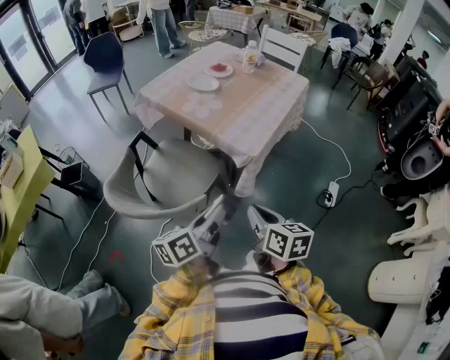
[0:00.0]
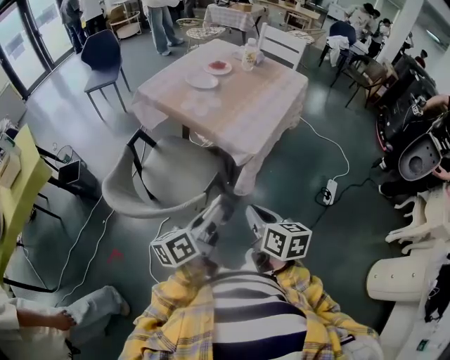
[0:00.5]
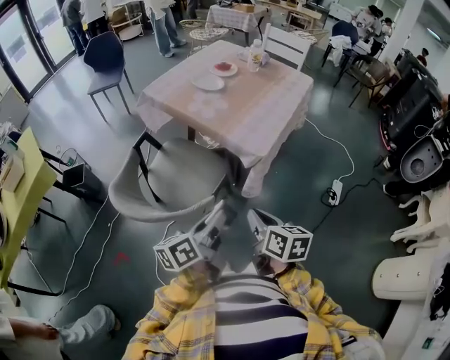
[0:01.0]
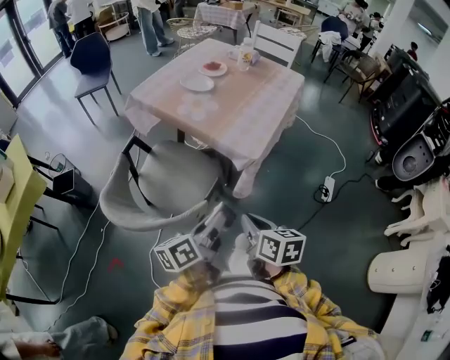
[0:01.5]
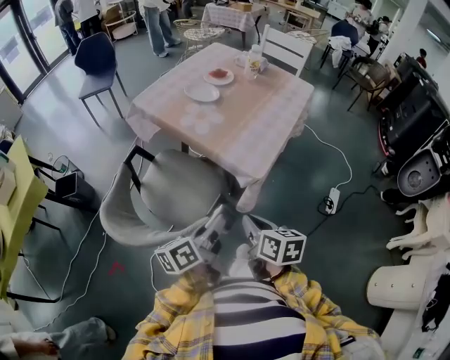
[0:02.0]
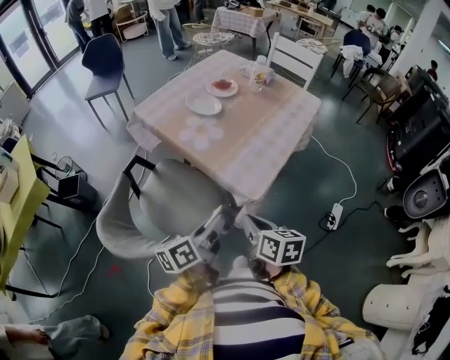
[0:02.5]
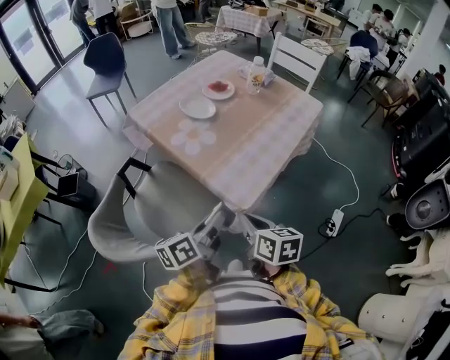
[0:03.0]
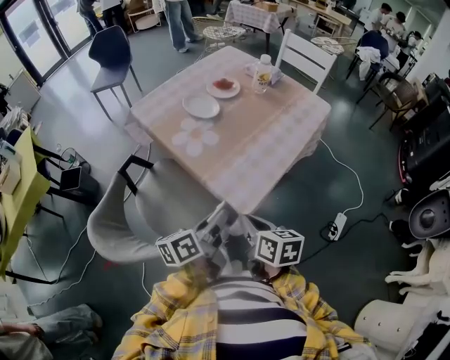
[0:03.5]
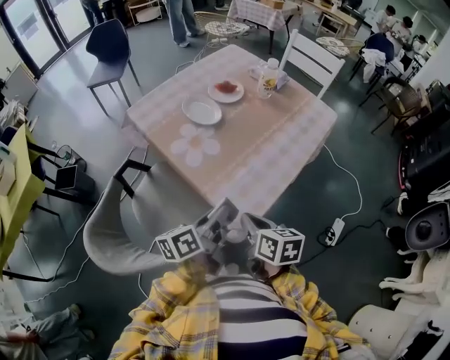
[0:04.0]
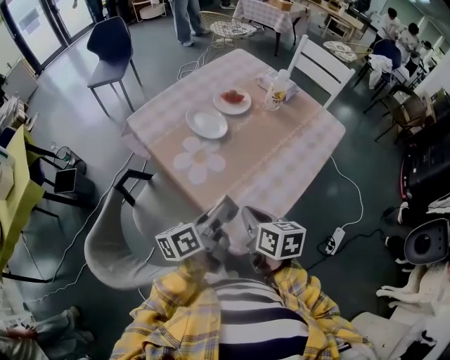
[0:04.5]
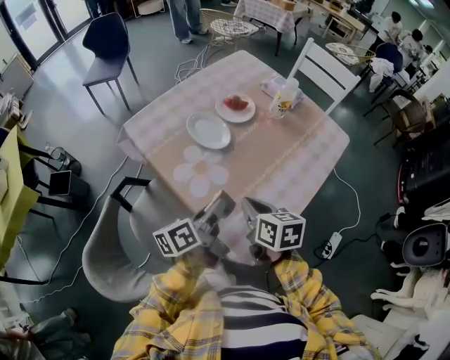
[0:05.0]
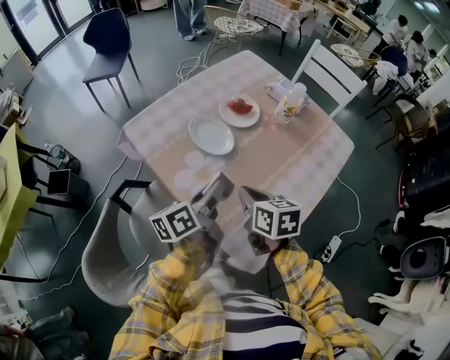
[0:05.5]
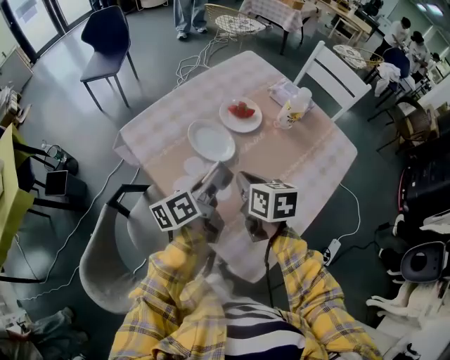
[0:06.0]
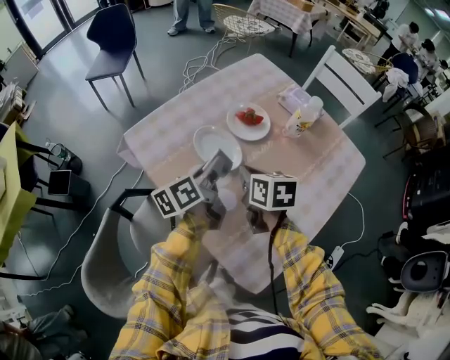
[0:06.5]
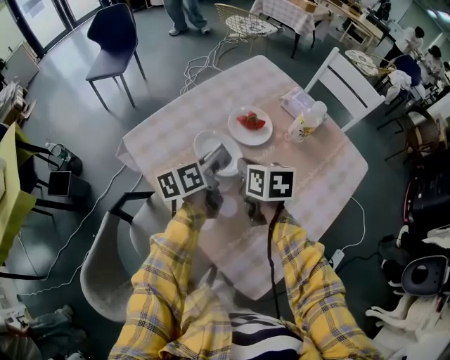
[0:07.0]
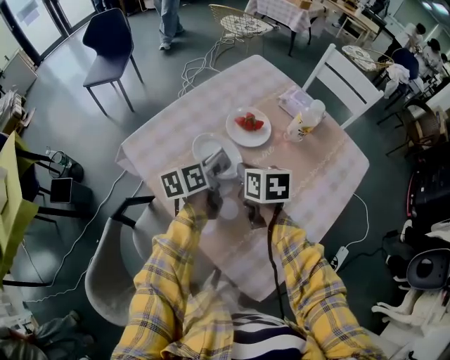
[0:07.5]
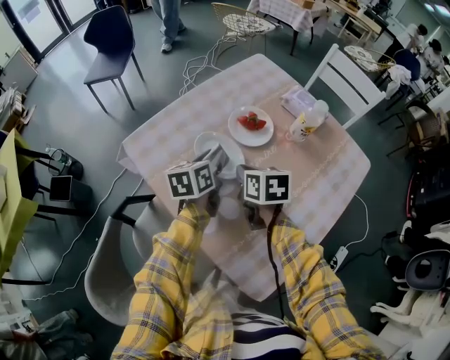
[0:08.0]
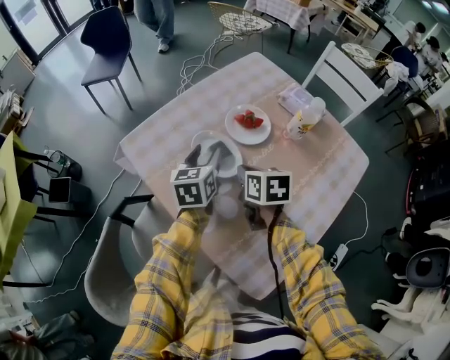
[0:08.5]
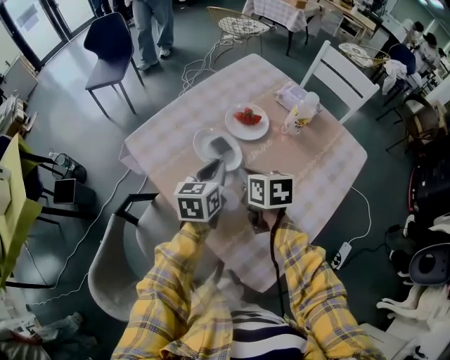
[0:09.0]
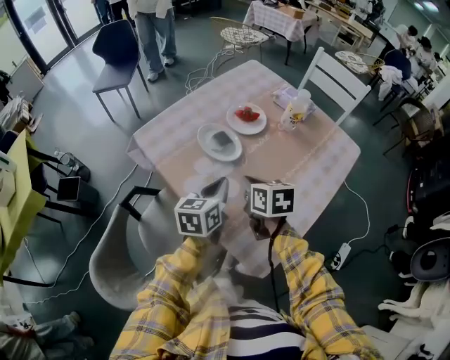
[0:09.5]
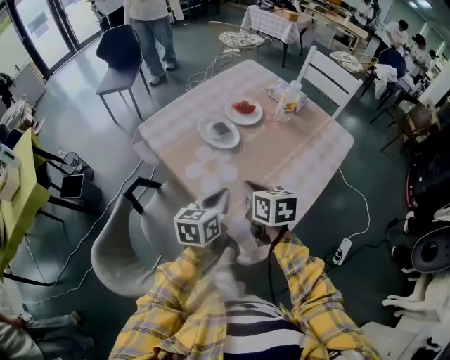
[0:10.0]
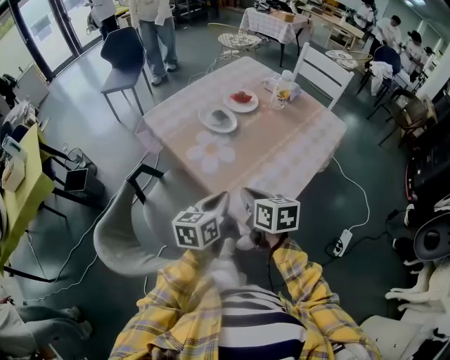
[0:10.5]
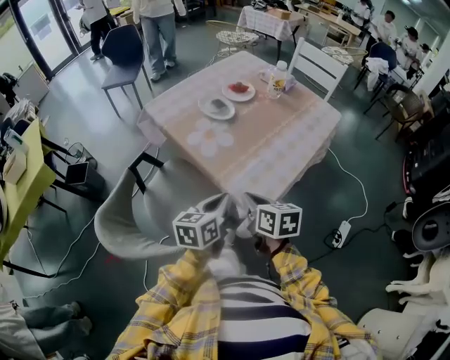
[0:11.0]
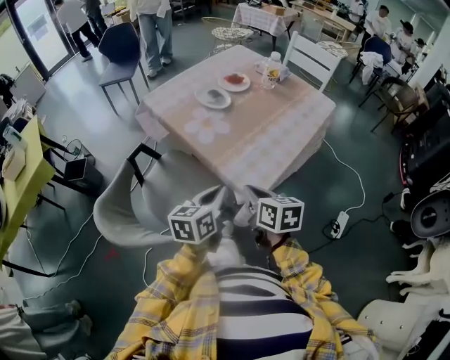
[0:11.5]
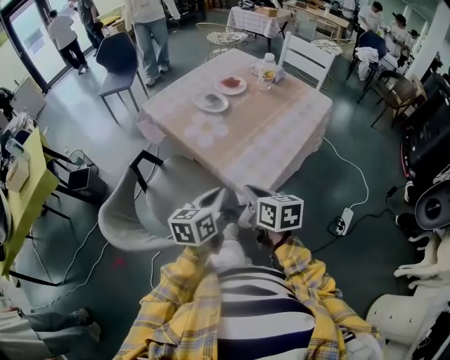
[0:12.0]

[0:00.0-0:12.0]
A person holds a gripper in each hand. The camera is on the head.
0:00.0 to 0:02.0: The grippers both shift forward by some 10 cm.
0:02.0 to 0:04.0: The grippers both shift forward by about 20 cm.
0:04.0 to 0:06.0: The two grippers go about 25 cm forward.
0:06.0 to 0:08.0: Both grippers travel together forward, approximately 10 cm. The left gripper swivels about 30 degrees.
0:08.0 to 0:10.0: The grippers both shift backward by some 20 cm. The left gripper closes its fingers.
0:10.0 to 0:12.0: Both grippers move backward, about 20 cm.

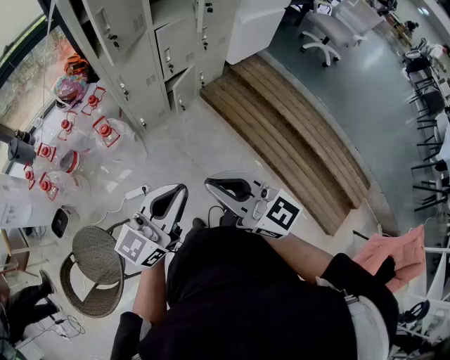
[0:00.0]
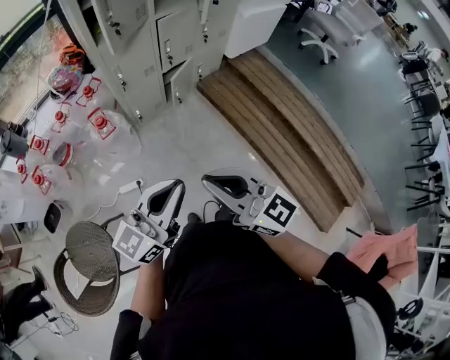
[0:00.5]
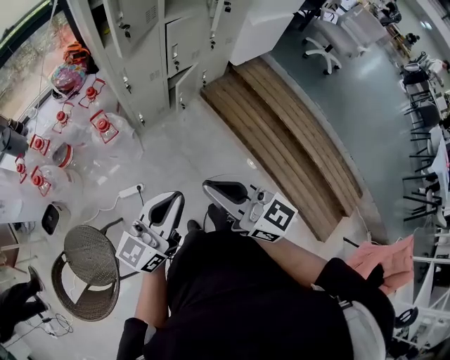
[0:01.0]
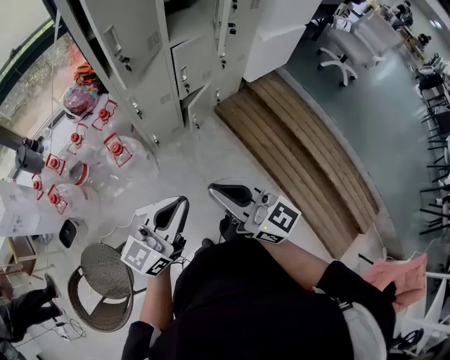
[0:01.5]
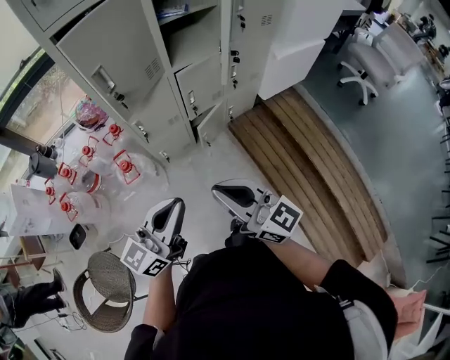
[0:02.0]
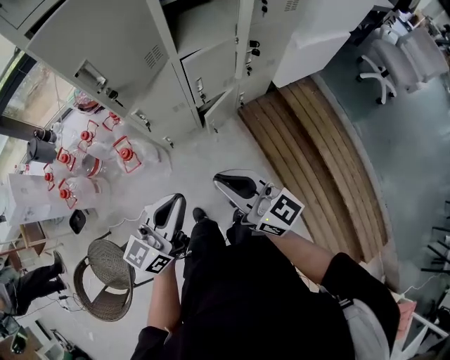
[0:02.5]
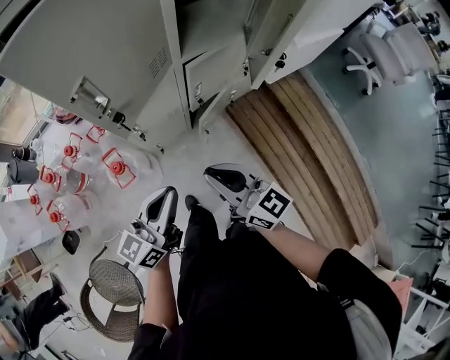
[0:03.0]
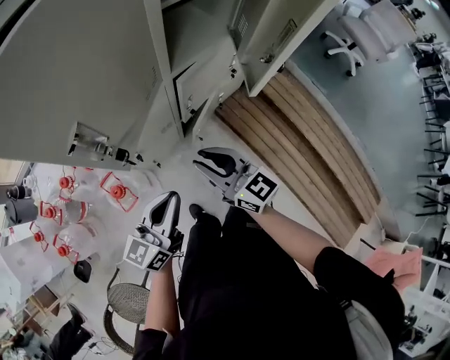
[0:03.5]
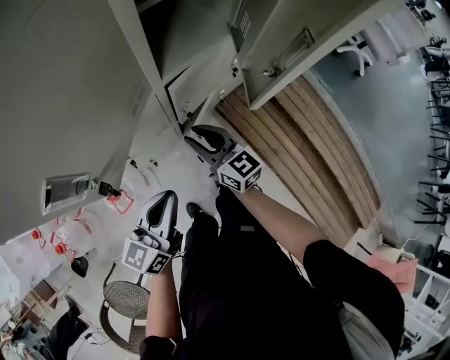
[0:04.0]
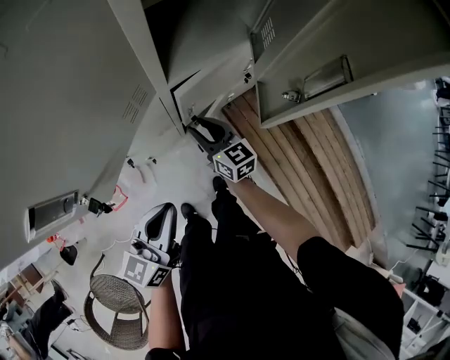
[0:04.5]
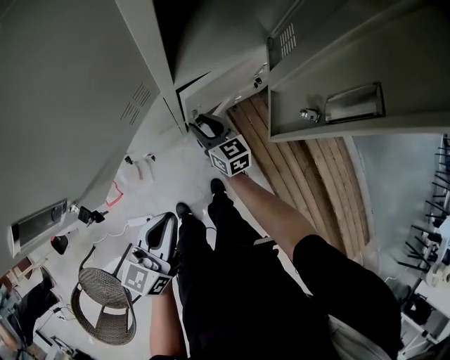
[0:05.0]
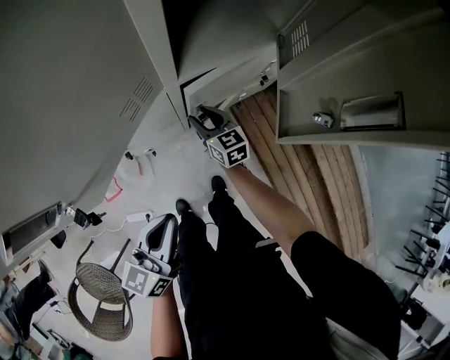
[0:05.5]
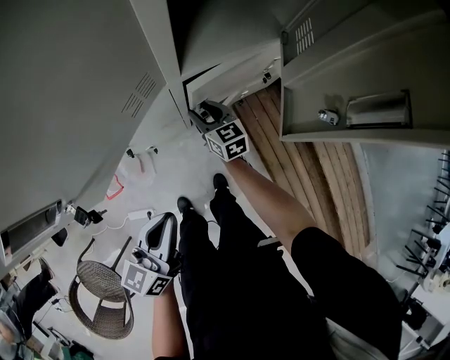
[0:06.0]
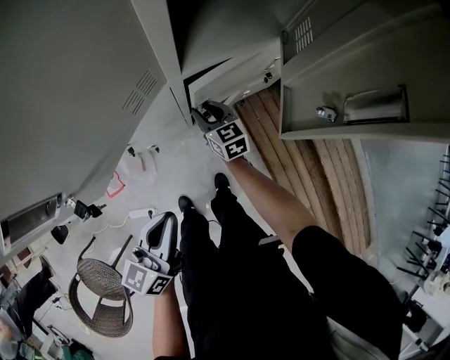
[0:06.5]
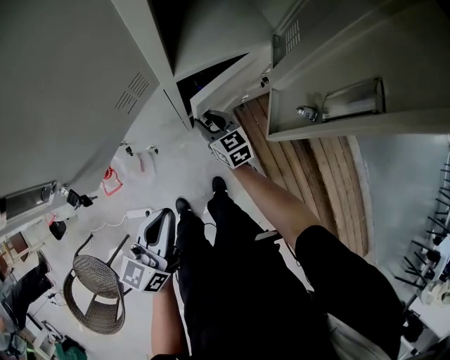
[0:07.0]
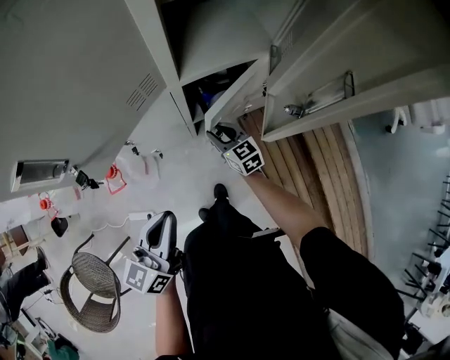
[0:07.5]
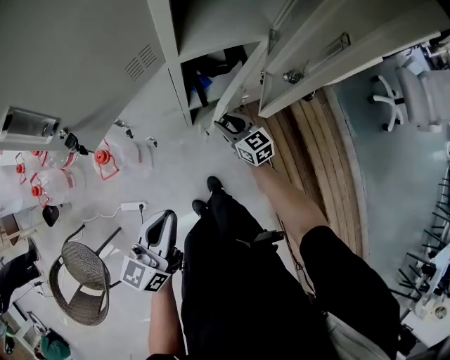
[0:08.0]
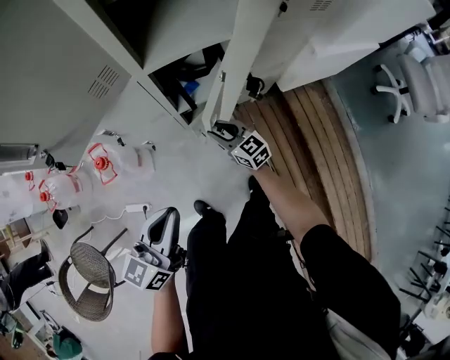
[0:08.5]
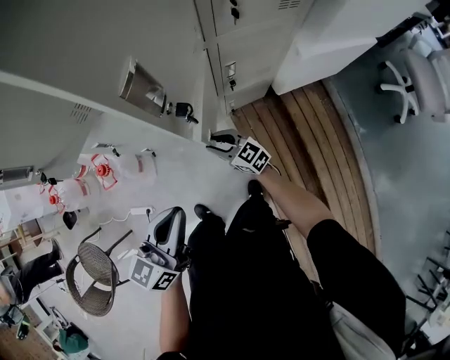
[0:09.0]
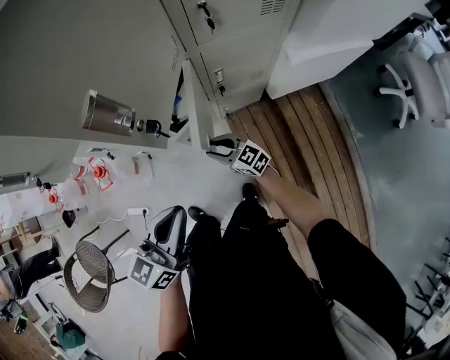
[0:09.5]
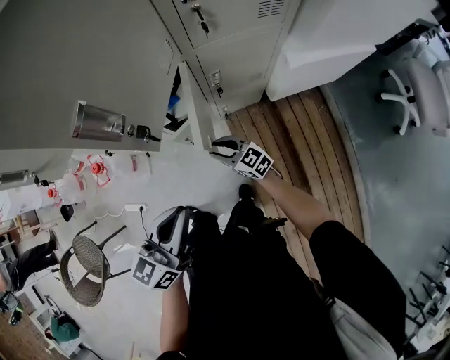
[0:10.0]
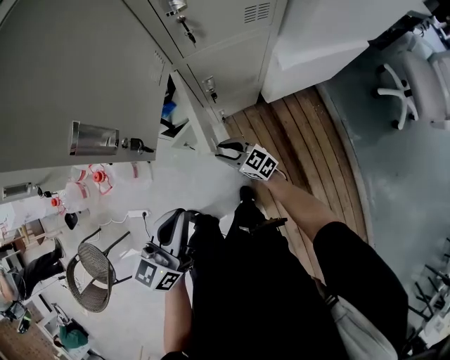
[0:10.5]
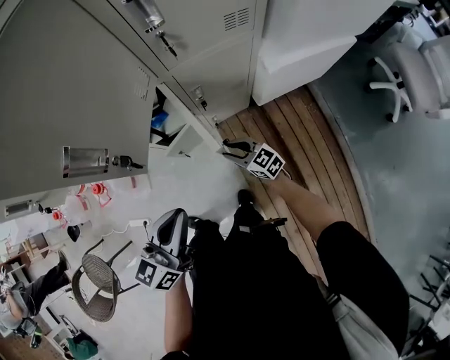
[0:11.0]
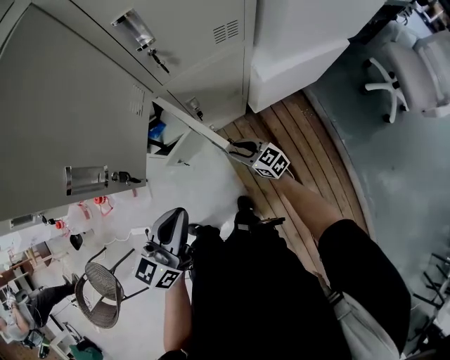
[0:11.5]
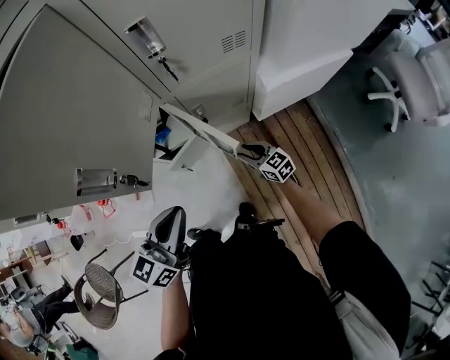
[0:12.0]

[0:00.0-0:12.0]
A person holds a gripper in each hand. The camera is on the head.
0:00.0 to 0:02.0: The grippers both shift forward by some 25 cm.
0:02.0 to 0:04.0: The two grippers go about 40 cm forward and downward. The right gripper changes its angle by roughly 30 degrees, and opens up.
0:04.0 to 0:06.0: The left gripper heads downward, covering some 5 cm, while the right gripper shifts roughly 20 cm downward and forward.
0:06.0 to 0:08.0: The left gripper is displaced backward by approximately 10 cm, while the right gripper travels backward and to the right by some 10 cm.
0:08.0 to 0:10.0: The left gripper travels to the right by approximately 30 cm; the right gripper heads to the right and backward, covering some 20 cm, and changes its angle by roughly 20 degrees.
0:10.0 to 0:12.0: The left gripper heads forward and to the right, covering about 10 cm. The right gripper goes approximately 20 cm to the right.

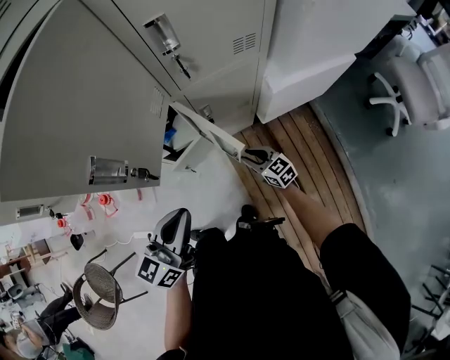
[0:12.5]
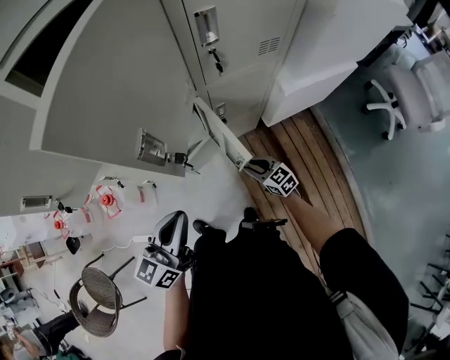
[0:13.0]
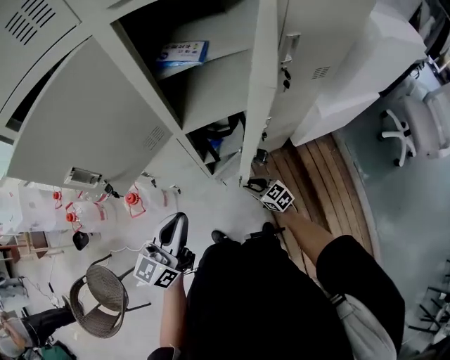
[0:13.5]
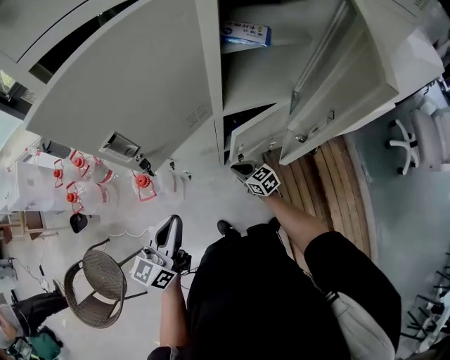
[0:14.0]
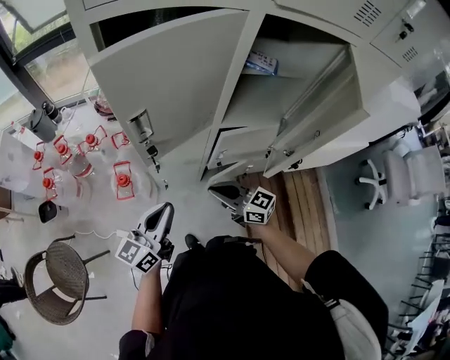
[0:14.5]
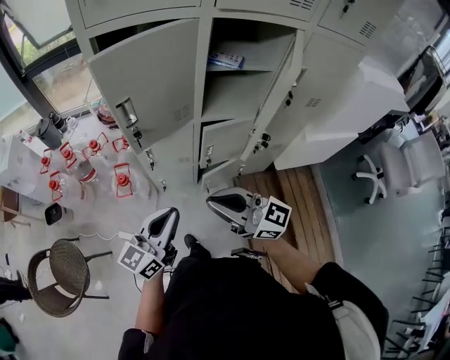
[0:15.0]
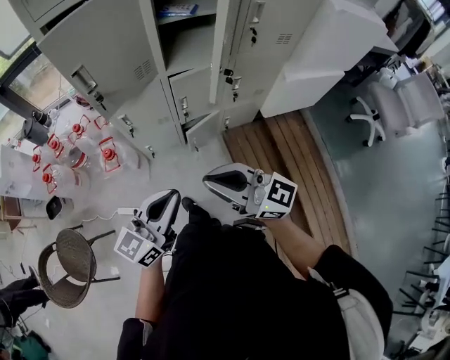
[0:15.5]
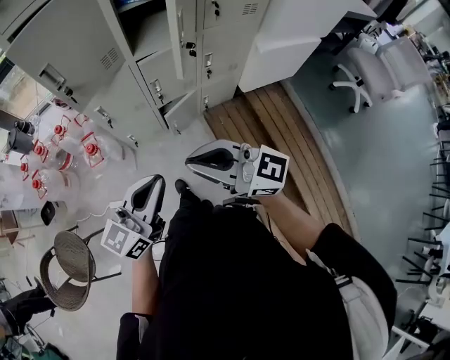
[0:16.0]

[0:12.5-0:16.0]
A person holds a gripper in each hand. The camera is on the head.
0:12.5 to 0:14.5: The right gripper travels to the left and upward by roughly 50 cm, rotates about 30 degrees, and closes up, while the left gripper is displaced to the left by roughly 40 cm.
0:14.5 to 0:16.0: The left gripper travels backward and to the right by some 30 cm, and turns by some 20 degrees. The right gripper heads backward and upward, covering some 35 cm.
